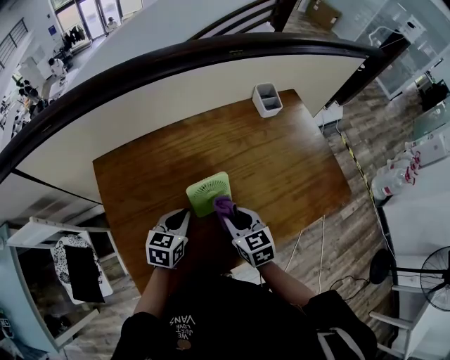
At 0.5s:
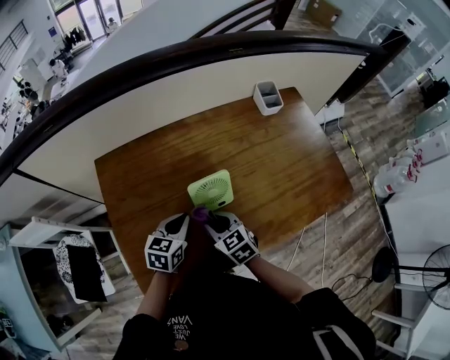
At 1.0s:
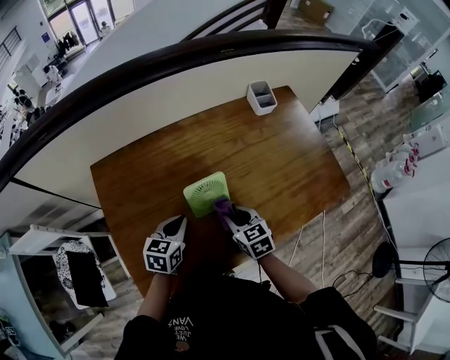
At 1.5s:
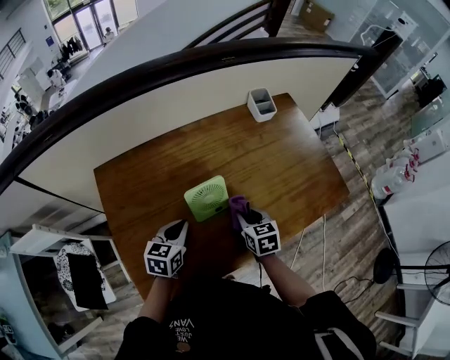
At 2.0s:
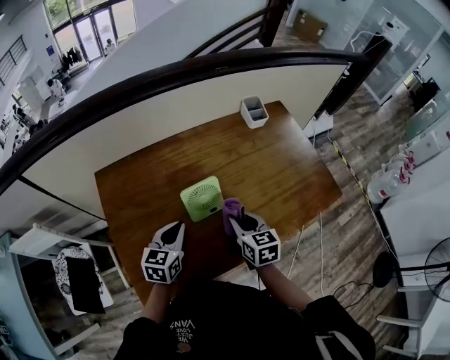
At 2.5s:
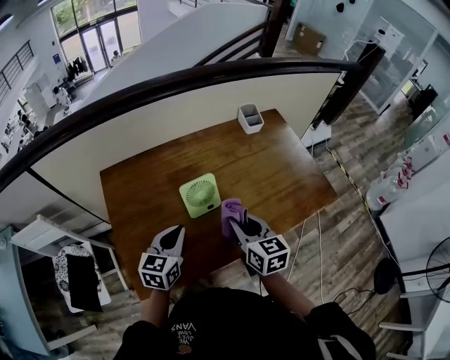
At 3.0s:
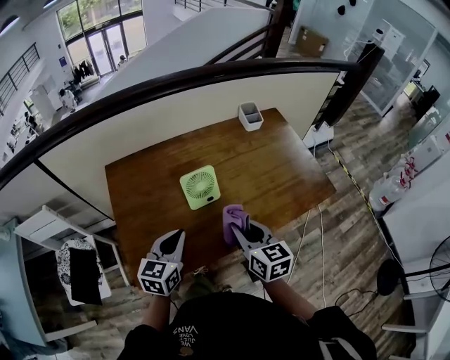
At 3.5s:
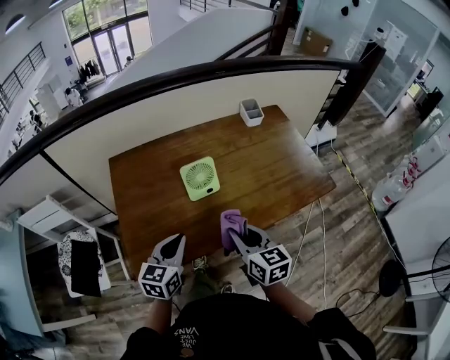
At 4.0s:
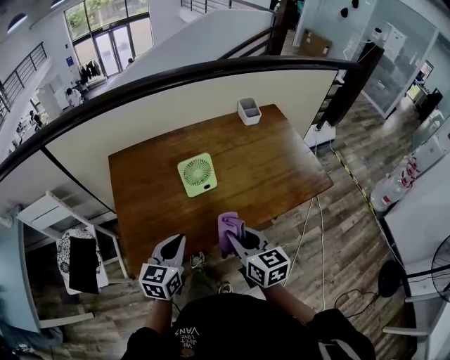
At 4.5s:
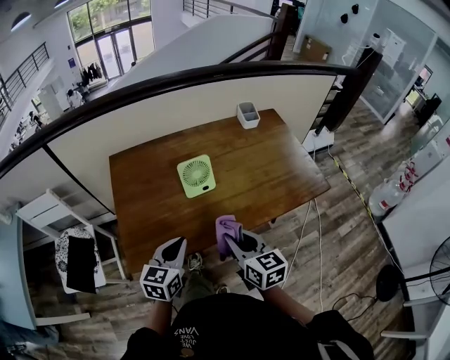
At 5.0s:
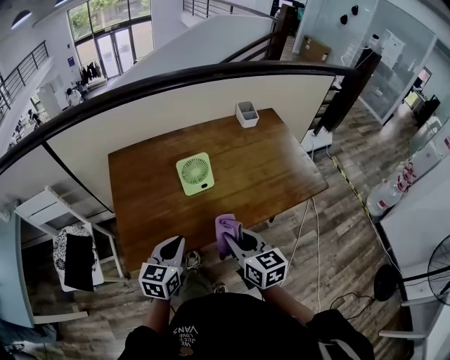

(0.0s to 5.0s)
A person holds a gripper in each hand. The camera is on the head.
0.0s - 2.5s: Both grippers move upward and backward, roughly 10 cm.
2.5s - 5.0s: The two grippers go roughly 15 cm backward.

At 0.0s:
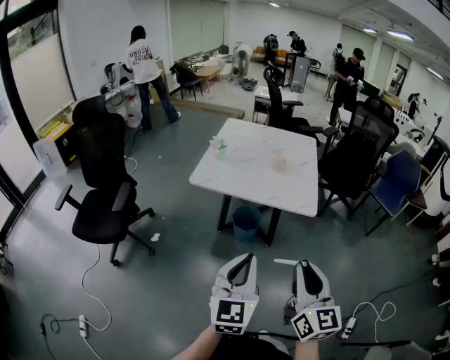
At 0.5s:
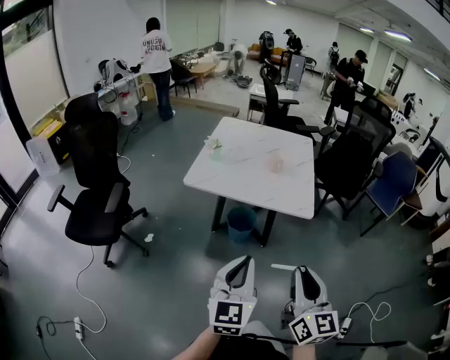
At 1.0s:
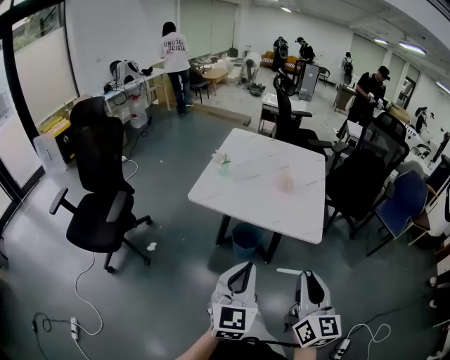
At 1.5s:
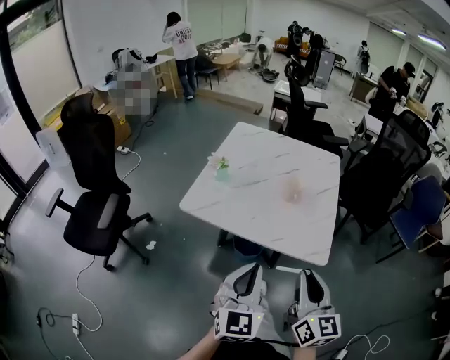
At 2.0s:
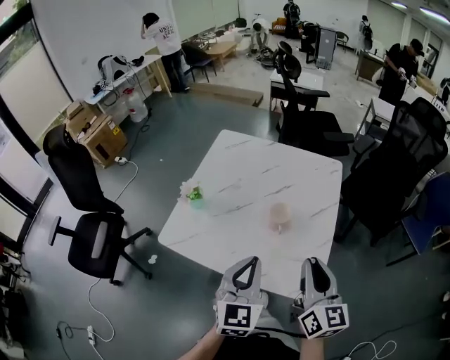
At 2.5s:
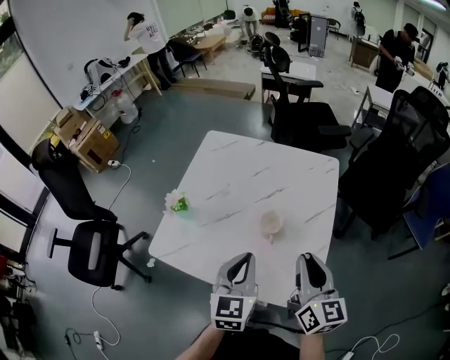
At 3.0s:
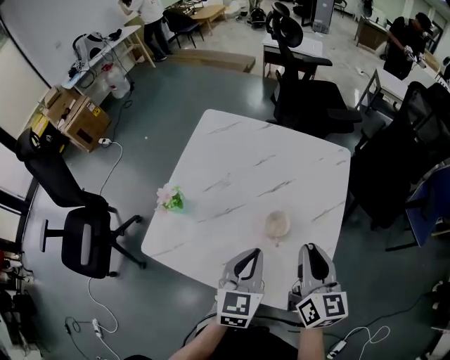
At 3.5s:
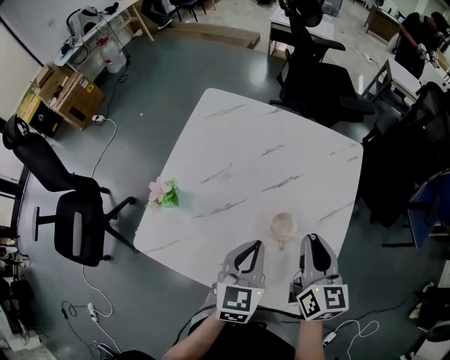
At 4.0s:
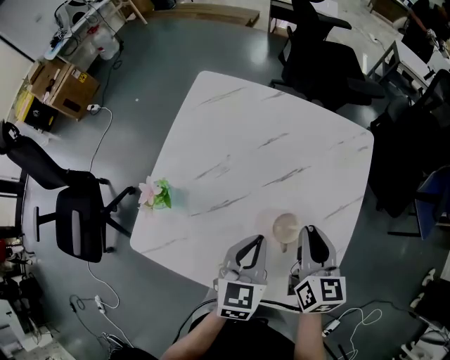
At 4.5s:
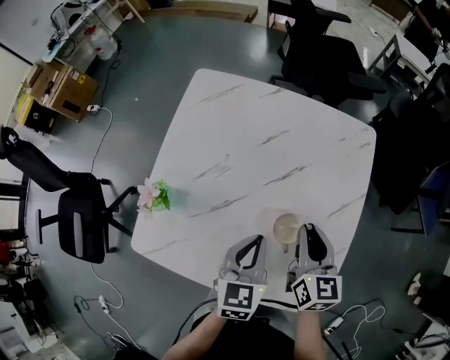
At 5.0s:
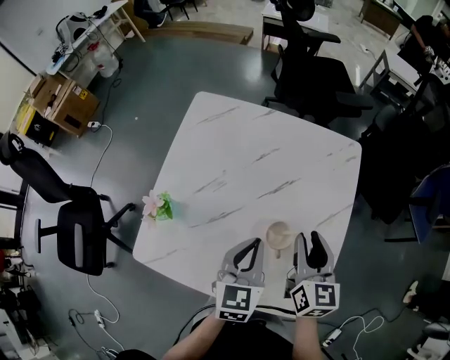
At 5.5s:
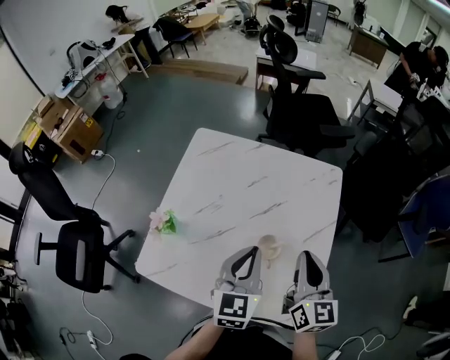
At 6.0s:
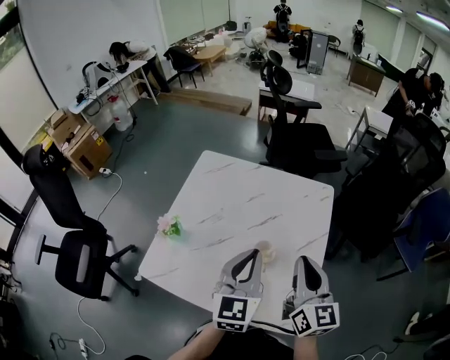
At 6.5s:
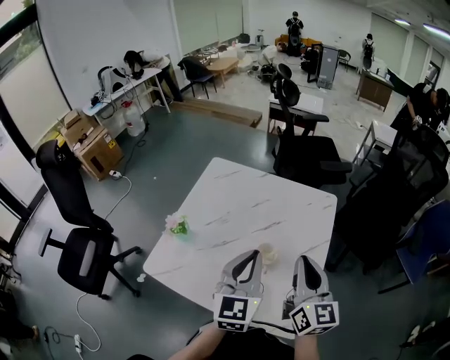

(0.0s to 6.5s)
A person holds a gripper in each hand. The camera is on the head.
0.0s - 2.0s: Both grippers are carried forward, about 50 cm.
2.0s - 4.5s: Both grippers move forward and downward, approximately 25 cm. The left gripper turns by about 30 degrees. The right gripper rotates some 20 degrees.
4.5s - 6.5s: The left gripper moves upward, some 20 cm, and swivels some 30 degrees. Meanwhile the right gripper travels upward and backward by about 20 cm, changes its angle by roughly 20 degrees, and opens and closes again.

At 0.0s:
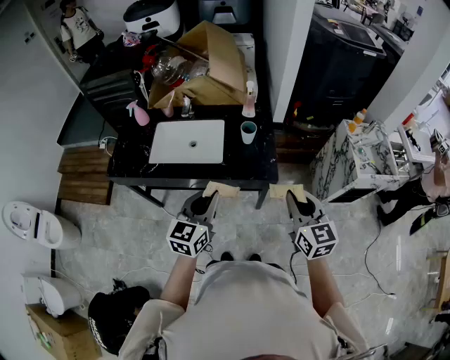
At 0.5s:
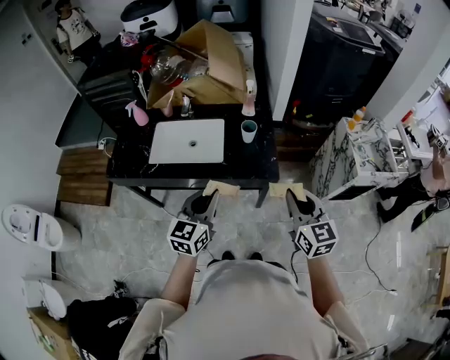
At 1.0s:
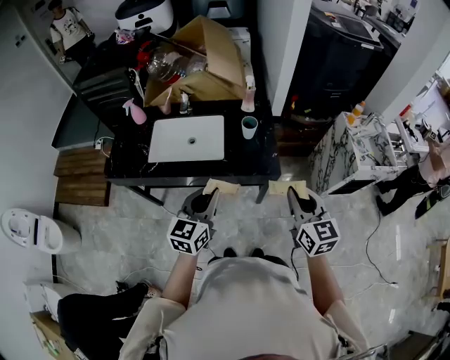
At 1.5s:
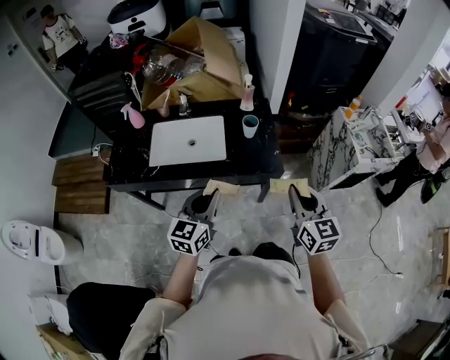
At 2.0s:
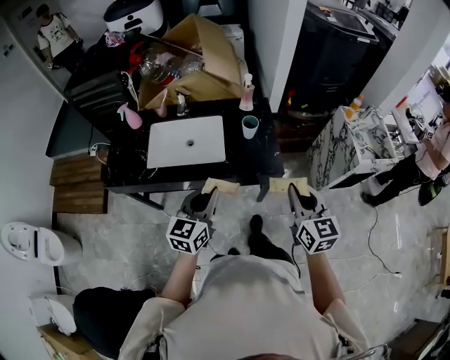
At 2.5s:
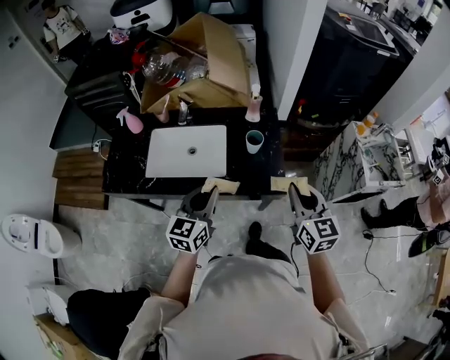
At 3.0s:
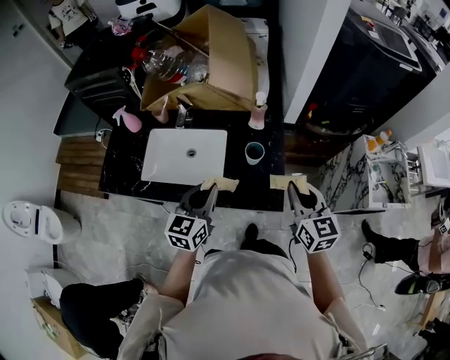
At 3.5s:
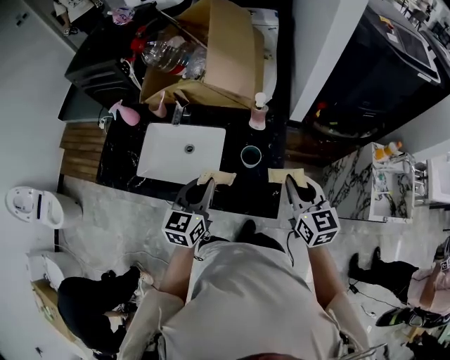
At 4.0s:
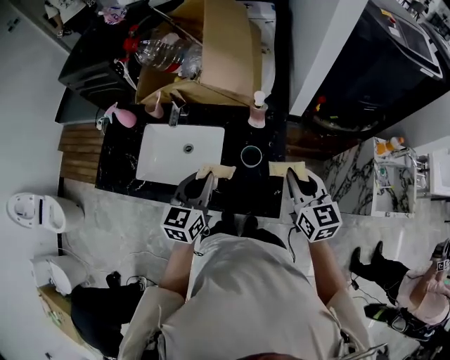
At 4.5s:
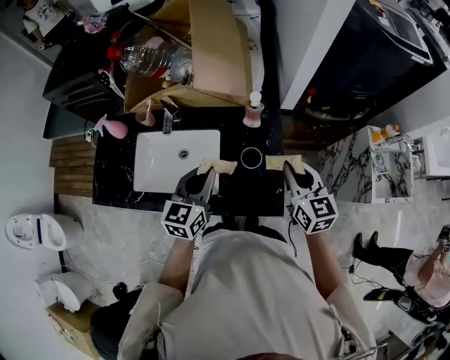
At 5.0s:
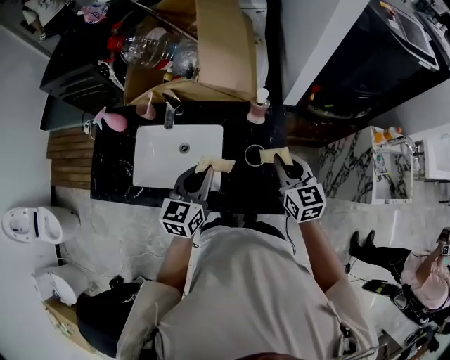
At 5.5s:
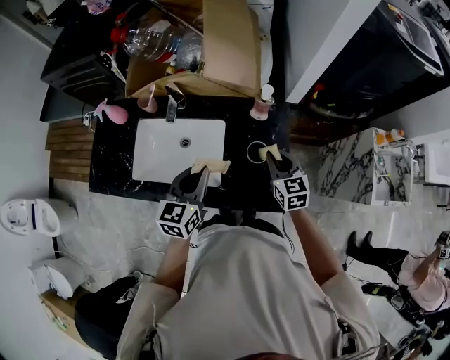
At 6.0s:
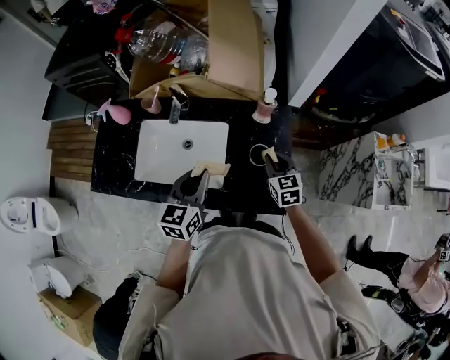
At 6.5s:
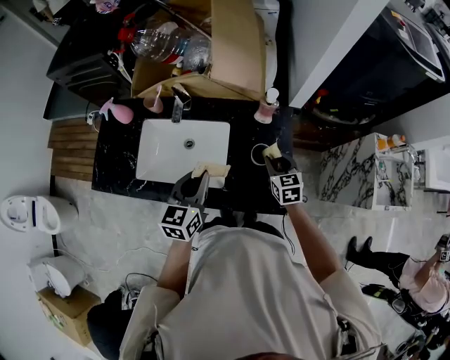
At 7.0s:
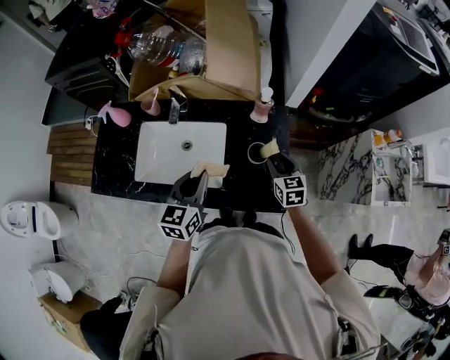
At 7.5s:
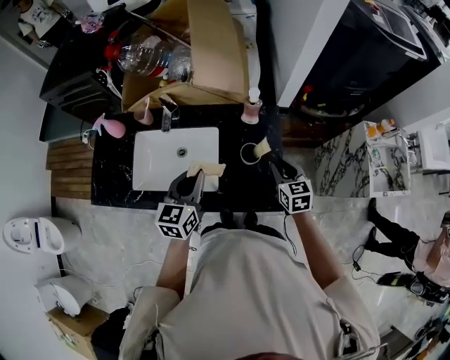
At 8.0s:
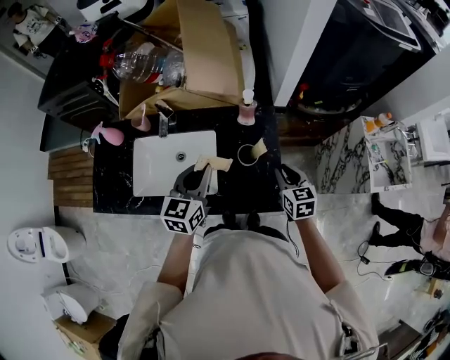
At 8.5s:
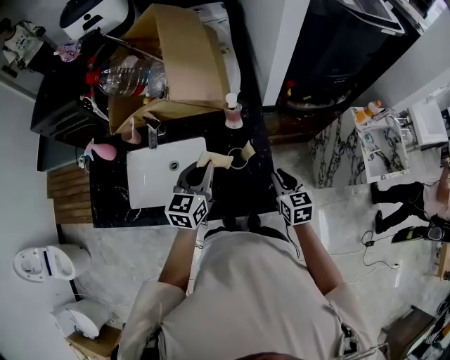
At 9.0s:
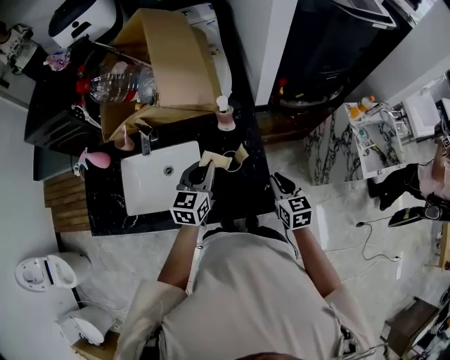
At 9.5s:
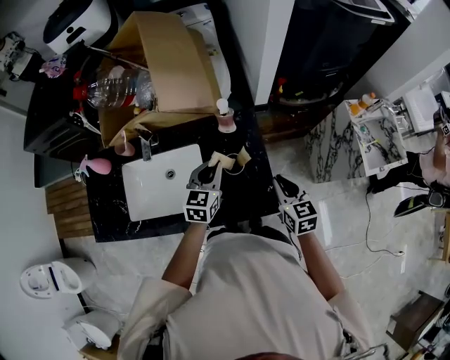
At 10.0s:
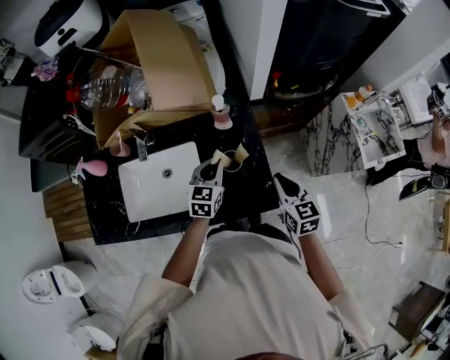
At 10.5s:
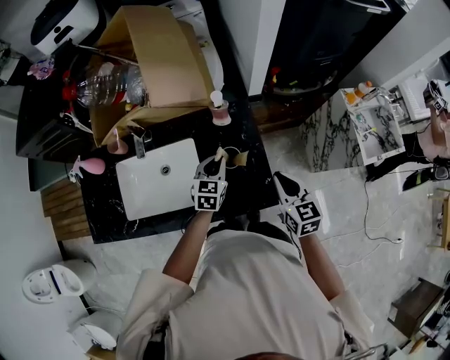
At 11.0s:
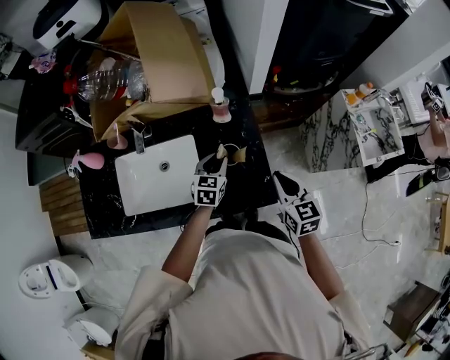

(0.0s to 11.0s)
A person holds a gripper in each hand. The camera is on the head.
0.0s - 2.0s: The right gripper ends up approximately 5 cm from where it was; the left gripper is displaced to the left by some 5 cm.
2.0s - 3.5s: Both grippers travel together forward, roughly 25 cm.
3.5s - 5.5s: The right gripper moves downward, forward and to the left, about 20 cm; the left gripper travels forward and to the left by roughly 10 cm.
5.5s - 7.5s: The right gripper is displaced to the right by about 5 cm.
7.5s - 9.0s: The left gripper goes roughly 10 cm to the right and forward, while the right gripper travels to the right by some 5 cm.
9.0s - 11.0s: The left gripper is displaced downward by some 15 cm.

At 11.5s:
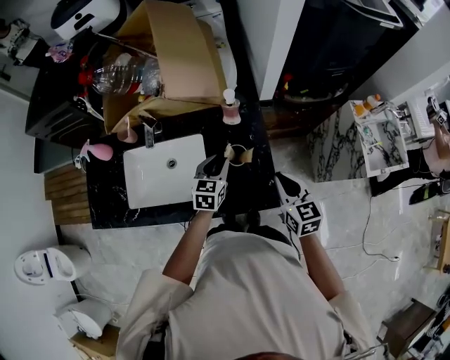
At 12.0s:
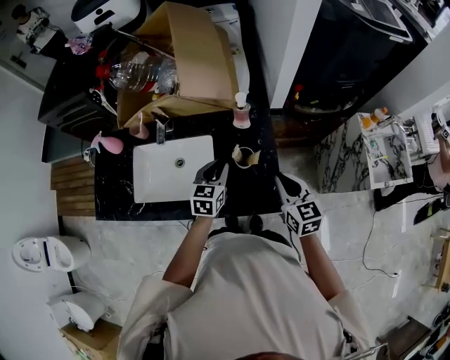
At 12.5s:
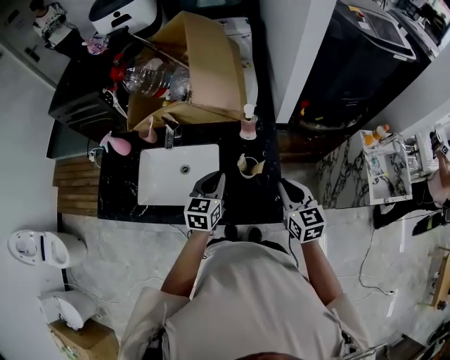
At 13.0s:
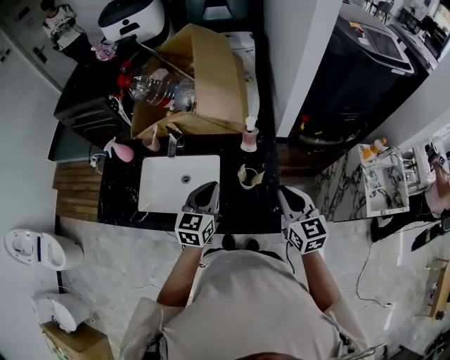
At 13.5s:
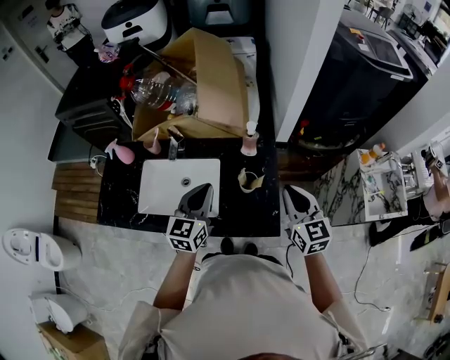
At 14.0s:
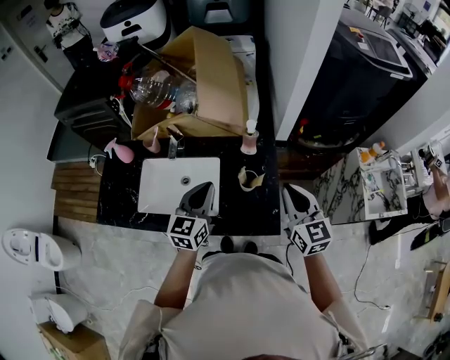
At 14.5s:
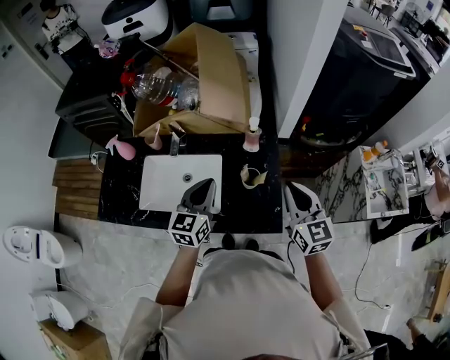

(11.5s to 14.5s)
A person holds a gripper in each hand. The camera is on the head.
11.5s - 13.0s: The left gripper heads upward, backward and to the left, covering approximately 15 cm, and closes its fingers. Meanwhile the right gripper shifts approximately 10 cm upward.
13.0s - 14.5s: The grippers move only a little.

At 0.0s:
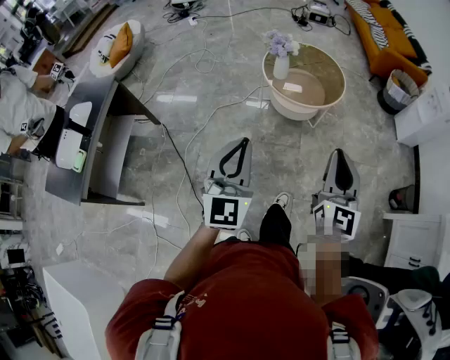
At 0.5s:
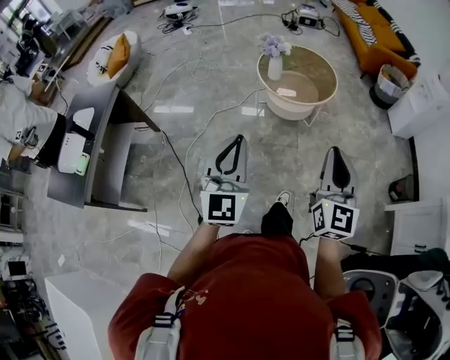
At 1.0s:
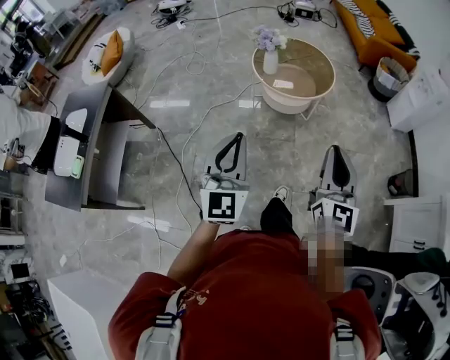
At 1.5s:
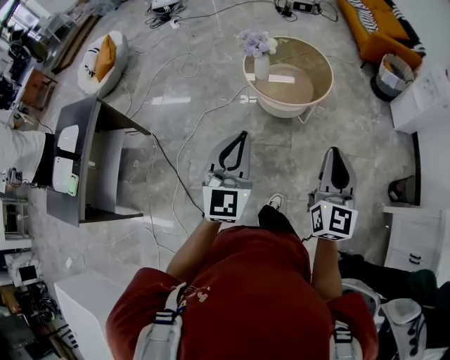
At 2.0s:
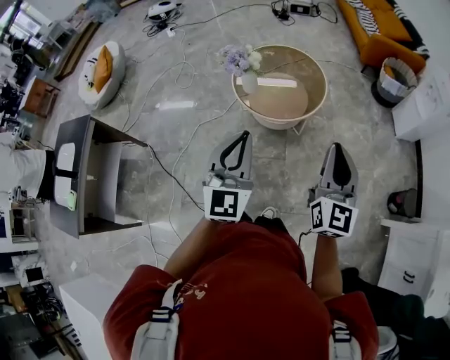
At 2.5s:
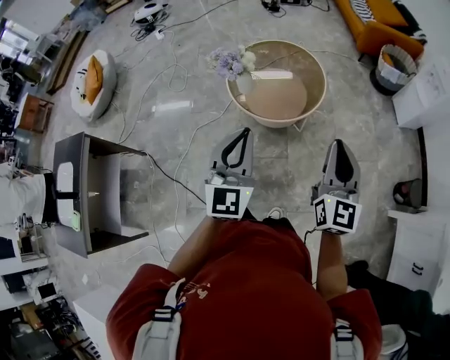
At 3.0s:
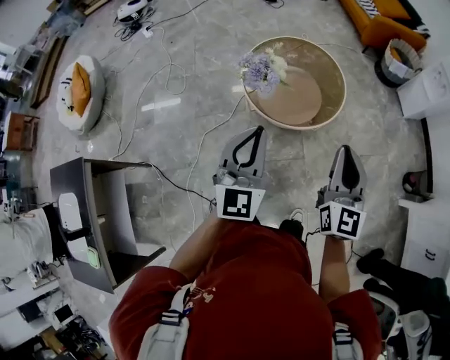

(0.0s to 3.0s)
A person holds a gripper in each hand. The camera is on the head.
0.0s - 1.5s: The two grippers go some 10 cm forward and to the right.
1.5s - 3.0s: The right gripper goes roughly 25 cm forward and to the left, while the left gripper heads forward, covering roughly 25 cm.
